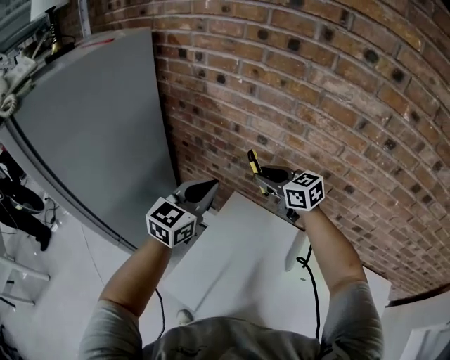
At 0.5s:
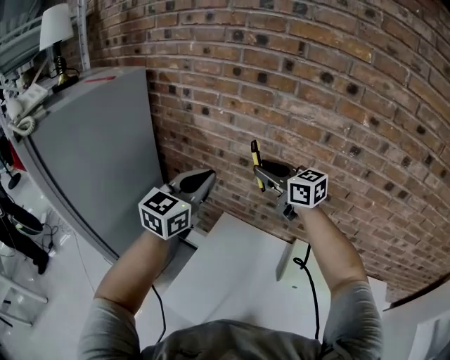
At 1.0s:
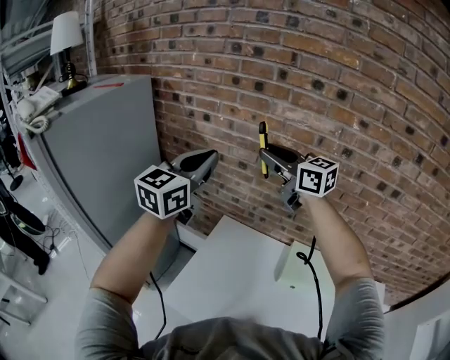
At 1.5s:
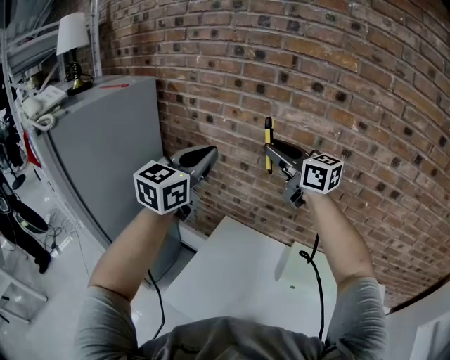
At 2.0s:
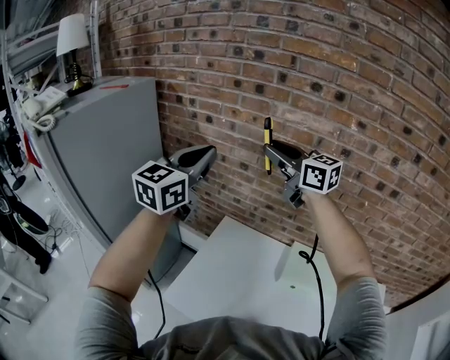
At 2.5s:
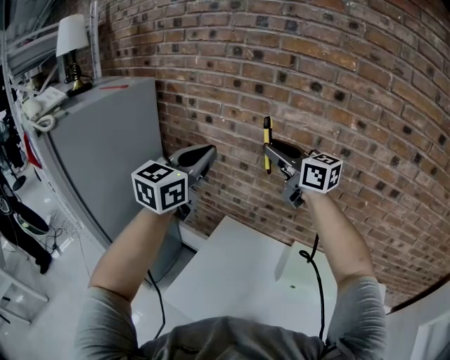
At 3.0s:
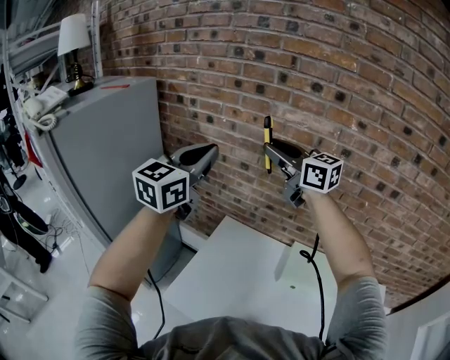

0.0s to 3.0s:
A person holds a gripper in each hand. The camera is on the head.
0.0s to 1.5s: The two grippers go about 25 cm upward. The right gripper swivels roughly 20 degrees.
1.5s to 3.0s: The two grippers keep their place.

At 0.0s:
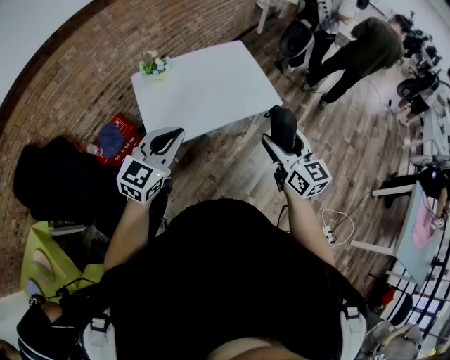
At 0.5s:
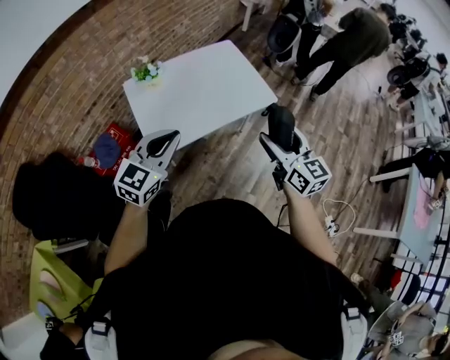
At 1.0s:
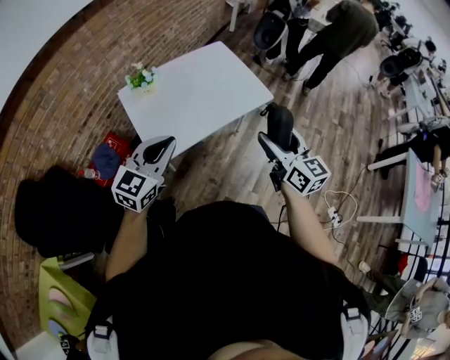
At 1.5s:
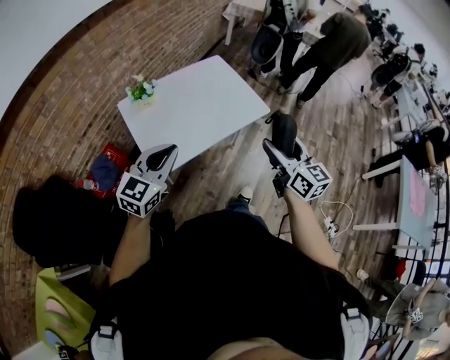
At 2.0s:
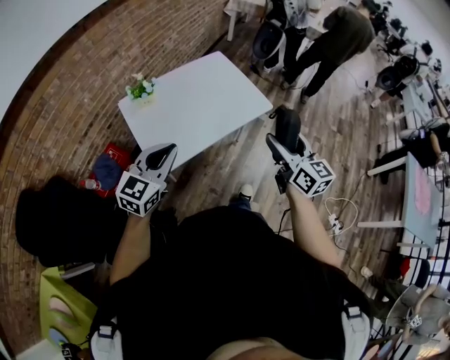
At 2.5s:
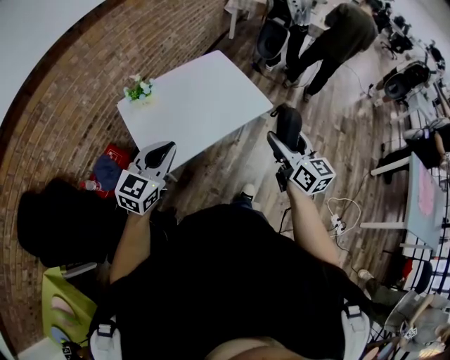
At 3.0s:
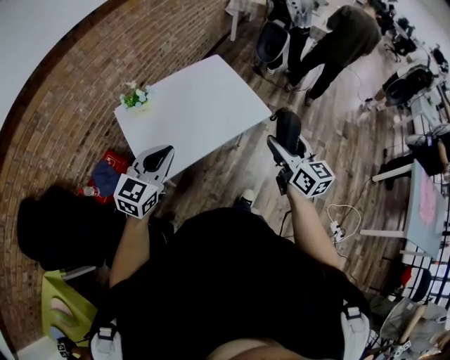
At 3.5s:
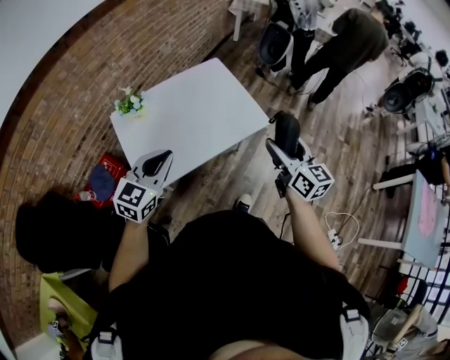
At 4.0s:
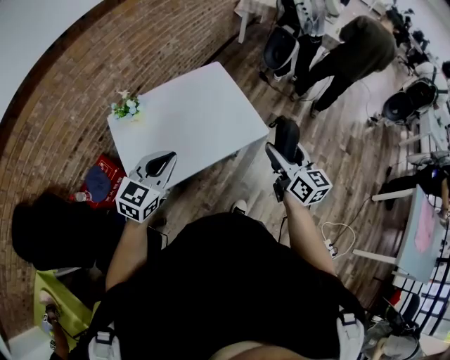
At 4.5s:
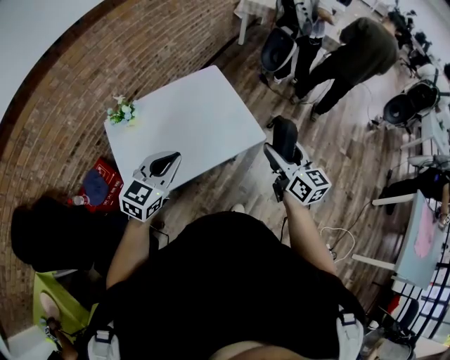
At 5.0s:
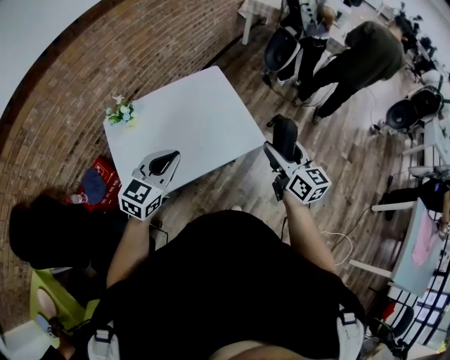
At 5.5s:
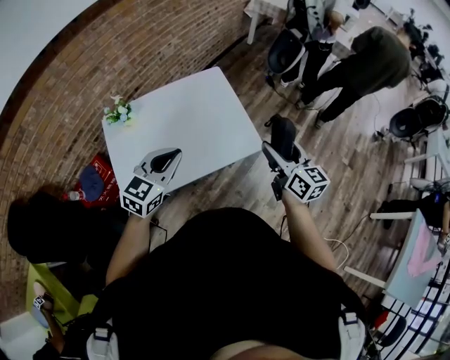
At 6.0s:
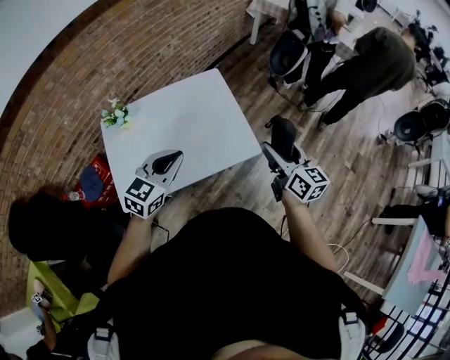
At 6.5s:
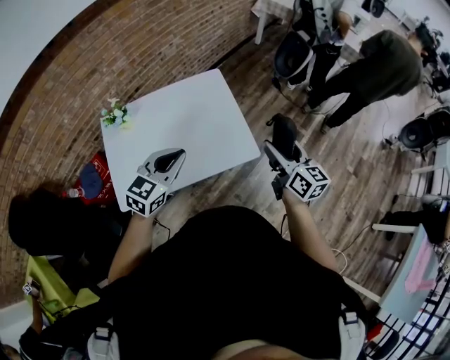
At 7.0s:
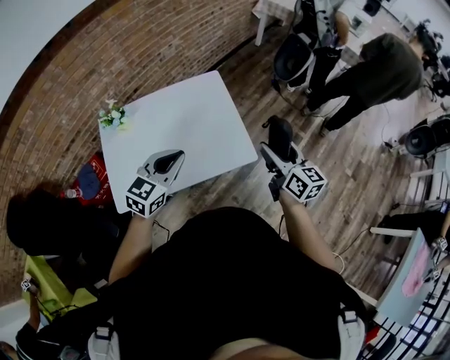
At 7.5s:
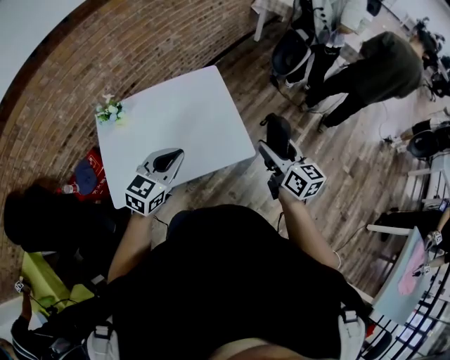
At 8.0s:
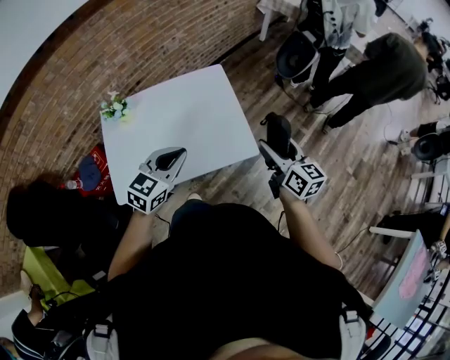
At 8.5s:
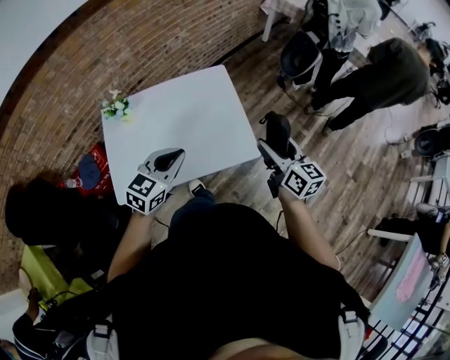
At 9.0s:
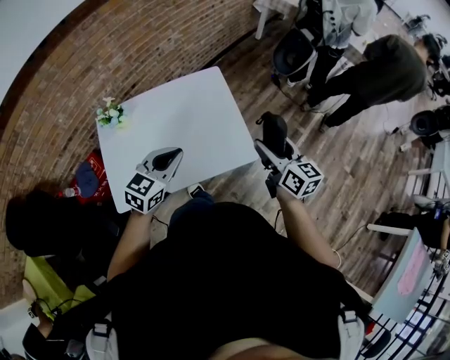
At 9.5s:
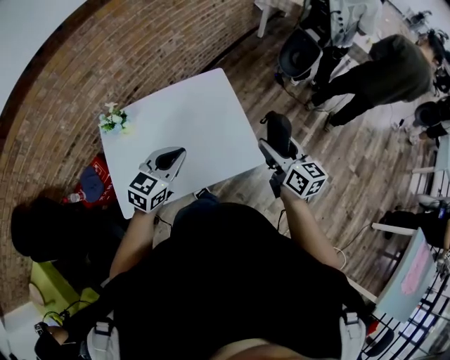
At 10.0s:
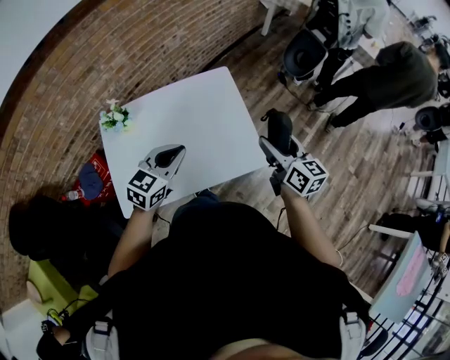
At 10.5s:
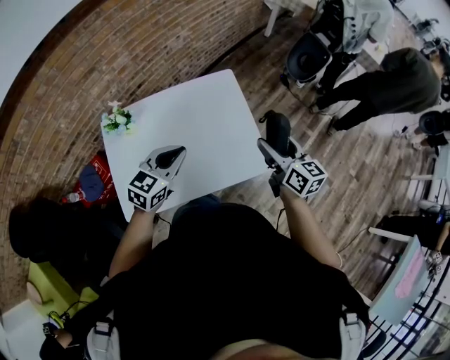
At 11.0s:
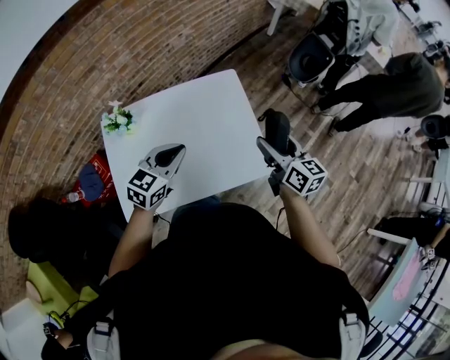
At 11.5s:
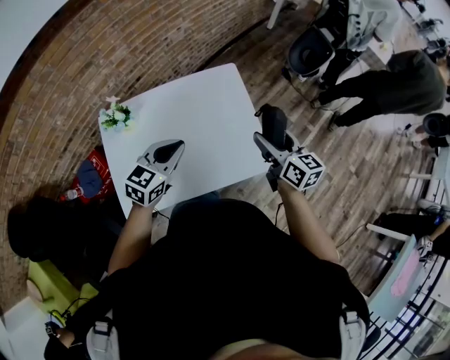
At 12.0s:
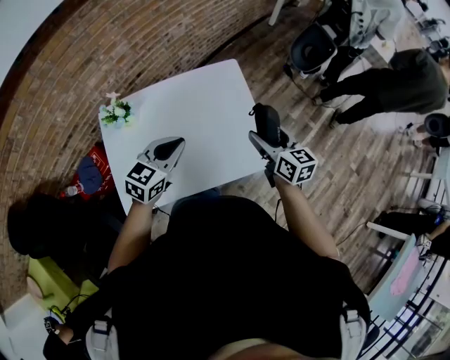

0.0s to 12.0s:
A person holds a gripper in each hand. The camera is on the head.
0.0s to 2.0s: The left gripper moves to the left, about 10 cm.
2.0s to 4.0s: Both grippers move forward and to the right, approximately 20 cm.
4.0s to 6.0s: Both grippers travel together forward and to the right, roughly 15 cm.
6.0s to 8.0s: The grippers make only small movements.
8.0s to 10.0s: The grippers both shift forward and to the left by some 10 cm.
10.0s to 12.0s: The left gripper moves approximately 5 cm. Meanwhile the right gripper is displaced to the left, downward and forward by roughly 10 cm.

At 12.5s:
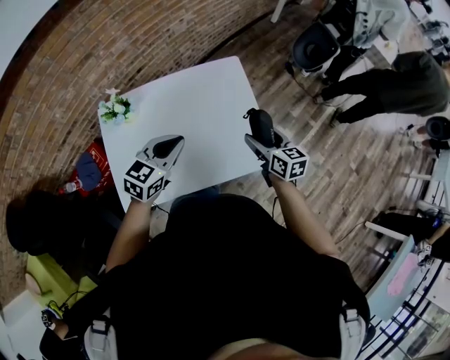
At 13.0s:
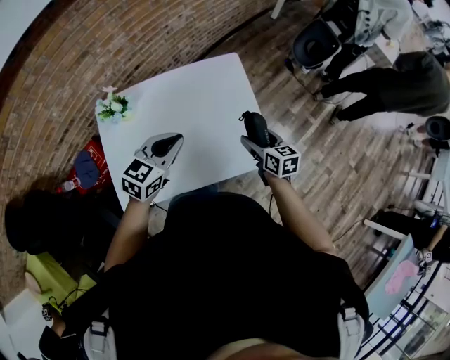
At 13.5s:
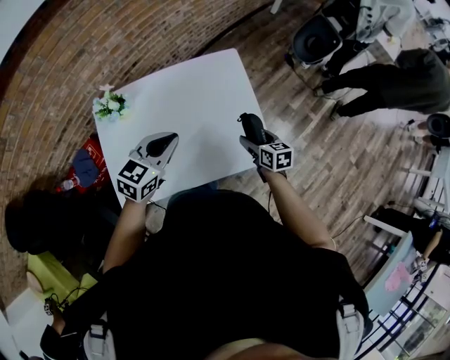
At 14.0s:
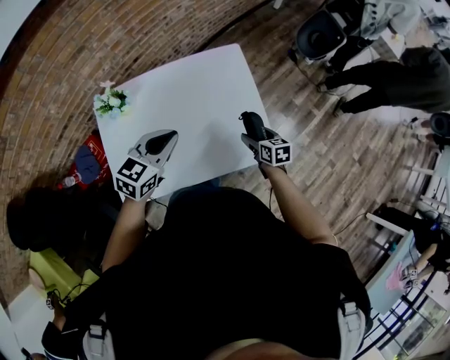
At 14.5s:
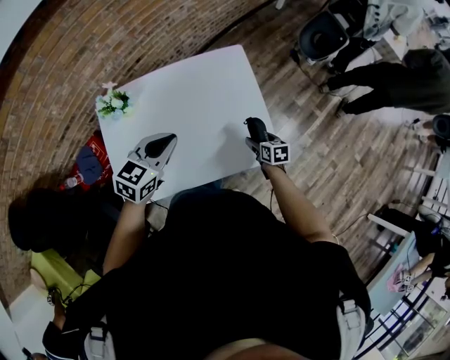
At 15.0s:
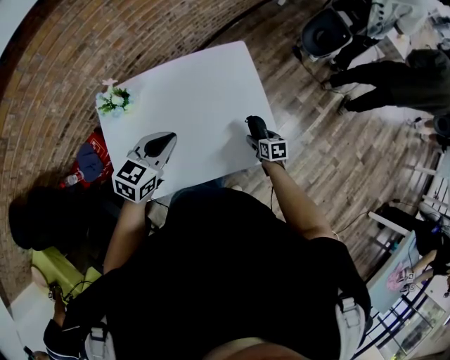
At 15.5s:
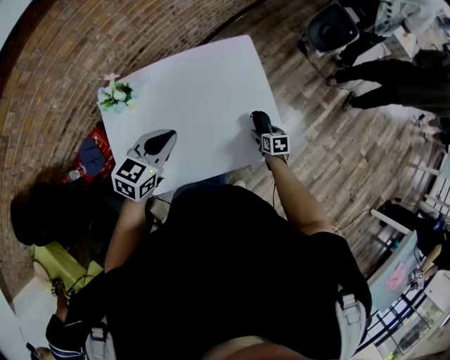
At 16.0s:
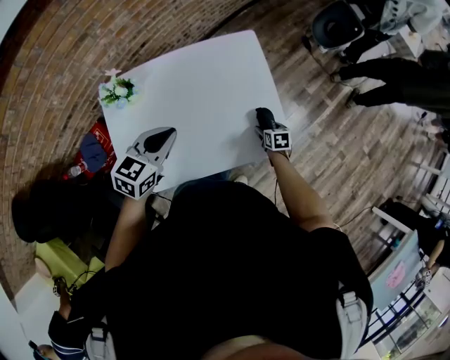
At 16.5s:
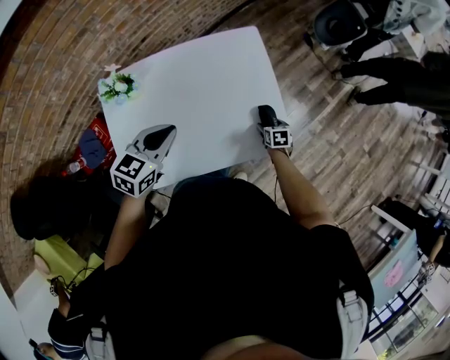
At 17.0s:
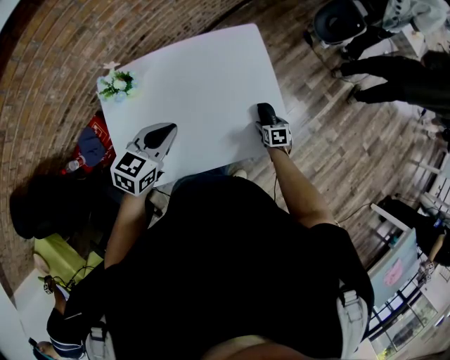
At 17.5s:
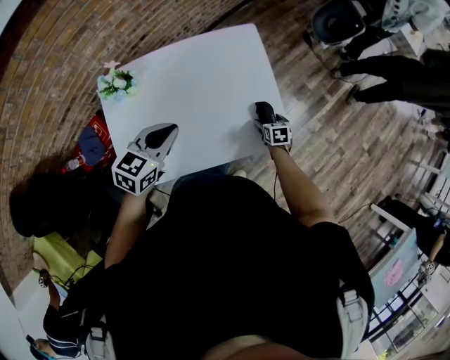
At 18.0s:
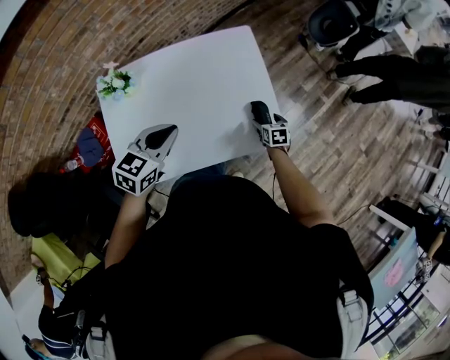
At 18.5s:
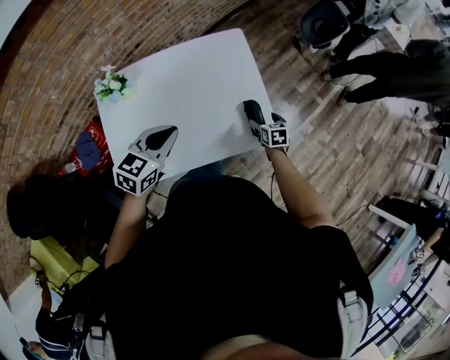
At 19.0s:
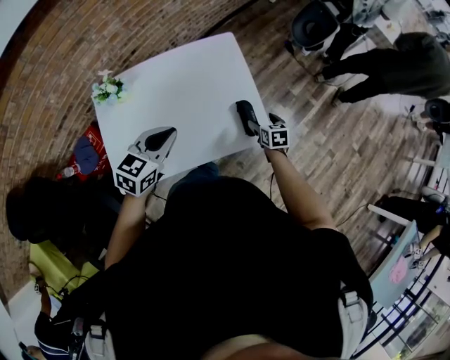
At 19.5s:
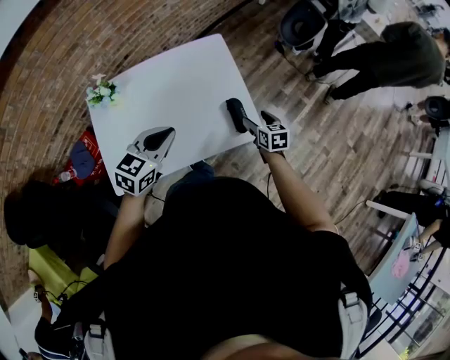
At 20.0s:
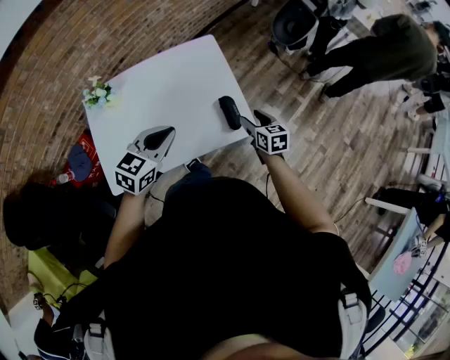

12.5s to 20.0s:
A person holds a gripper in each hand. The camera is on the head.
12.5s to 14.5s: The right gripper heads downward, covering some 20 cm, and changes its angle by some 20 degrees.
14.5s to 16.5s: The right gripper shifts about 10 cm downward.
16.5s to 18.0s: The grippers stay close to where they were, moving slightly.
18.0s to 20.0s: The right gripper heads upward, covering about 15 cm; the left gripper goes roughly 10 cm to the right and backward.

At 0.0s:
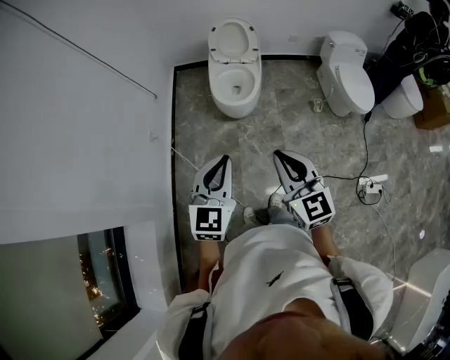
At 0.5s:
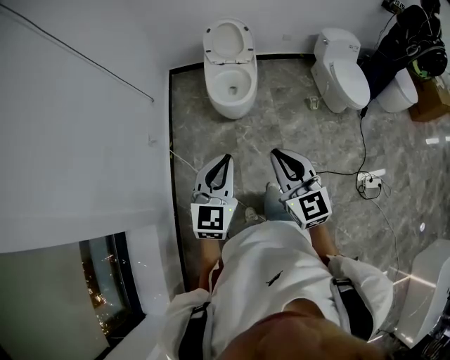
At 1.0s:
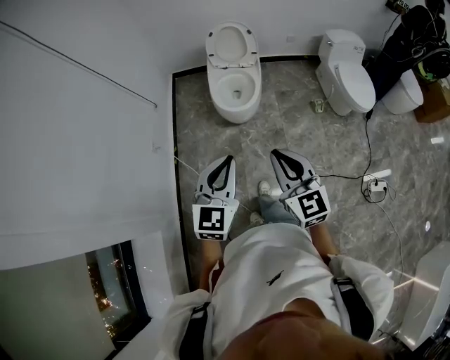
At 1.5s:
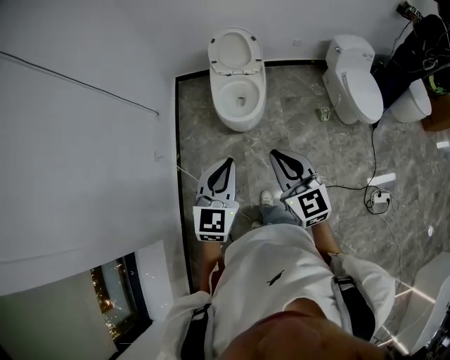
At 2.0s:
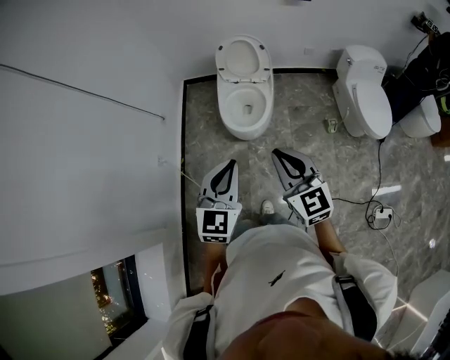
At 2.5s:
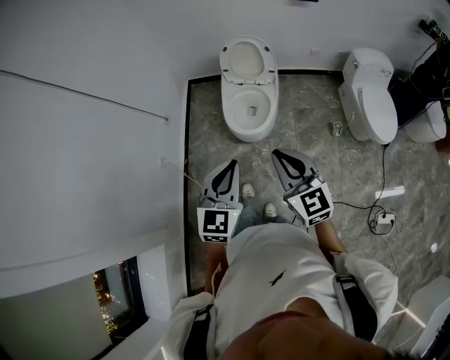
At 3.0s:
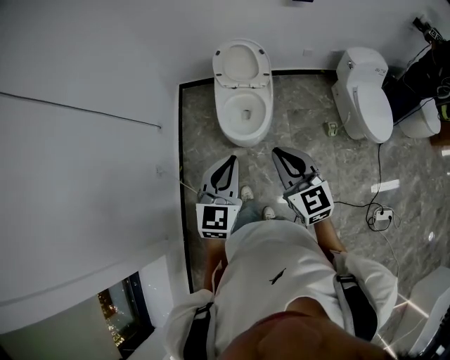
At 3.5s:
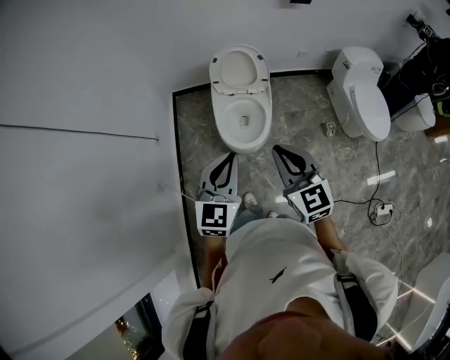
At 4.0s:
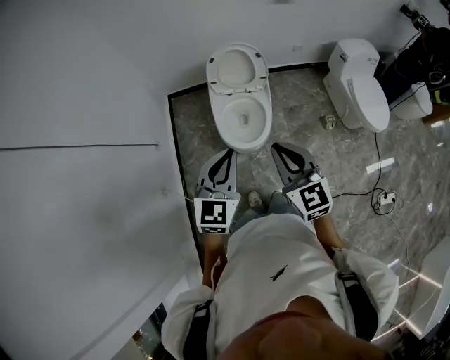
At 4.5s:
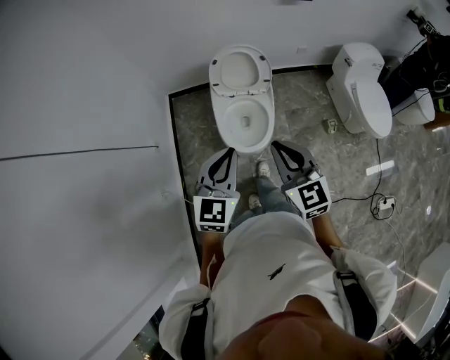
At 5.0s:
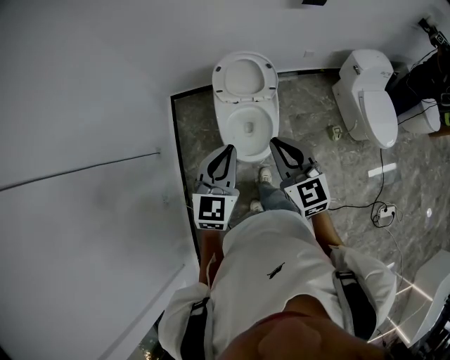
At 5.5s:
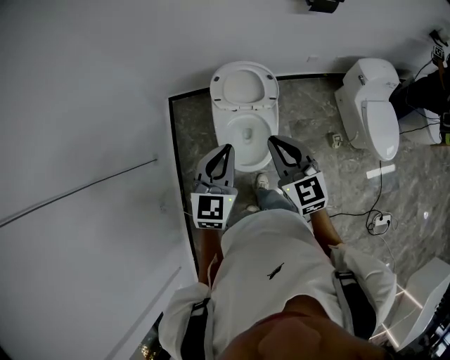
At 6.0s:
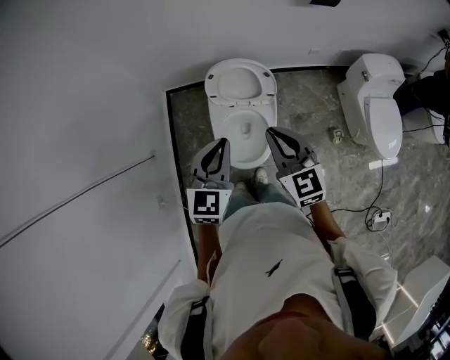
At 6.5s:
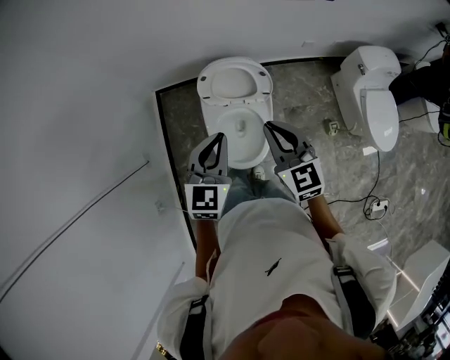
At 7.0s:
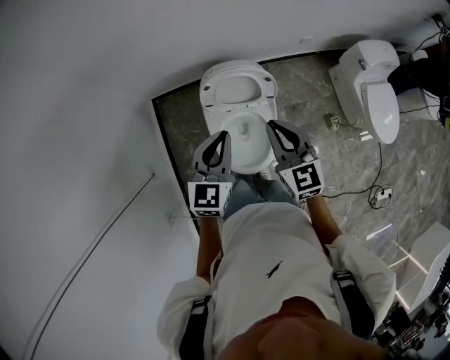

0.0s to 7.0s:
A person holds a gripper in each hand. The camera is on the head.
0.0s to 2.0s: The grippers both shift forward by some 20 cm.
2.0s to 3.5s: The two grippers go about 15 cm forward.
3.5s to 5.0s: The grippers both shift forward by roughly 15 cm.
5.0s to 7.0s: Both grippers travel together forward, some 25 cm.
